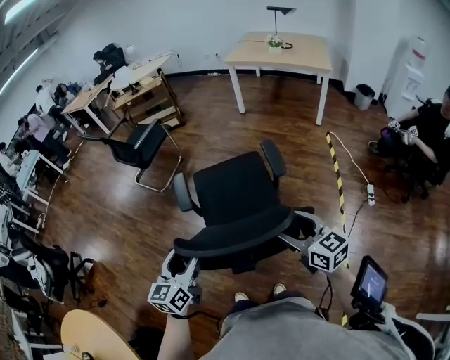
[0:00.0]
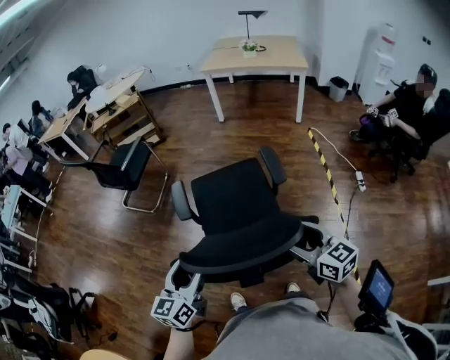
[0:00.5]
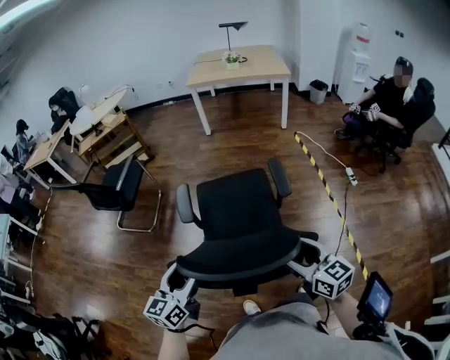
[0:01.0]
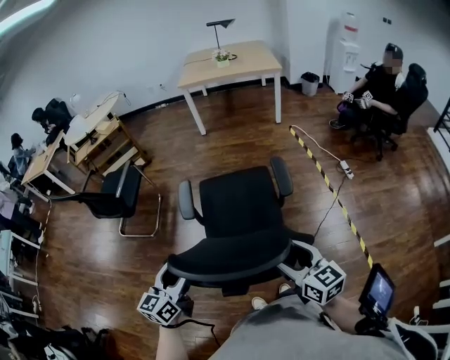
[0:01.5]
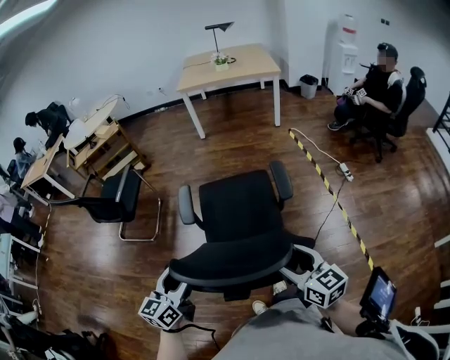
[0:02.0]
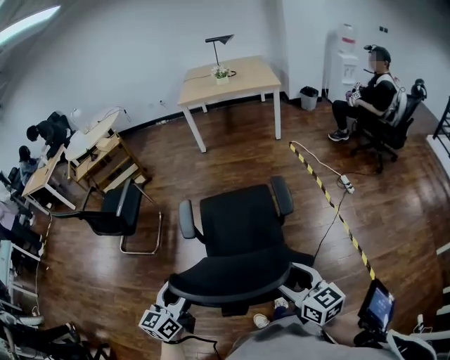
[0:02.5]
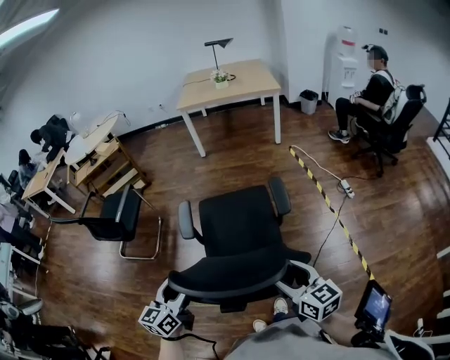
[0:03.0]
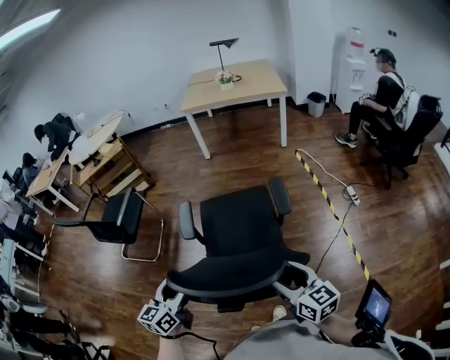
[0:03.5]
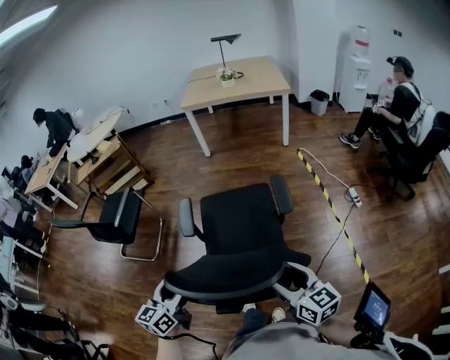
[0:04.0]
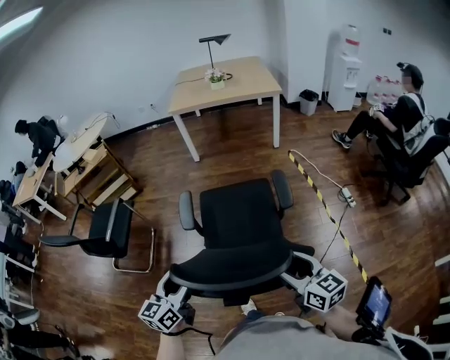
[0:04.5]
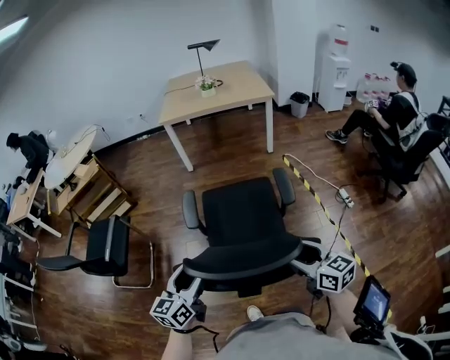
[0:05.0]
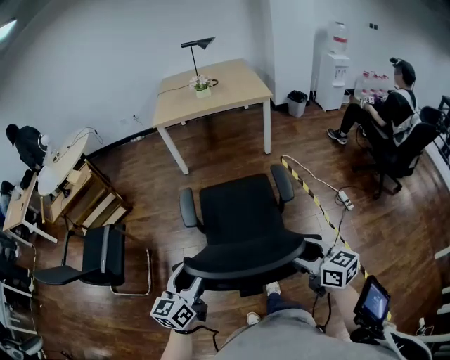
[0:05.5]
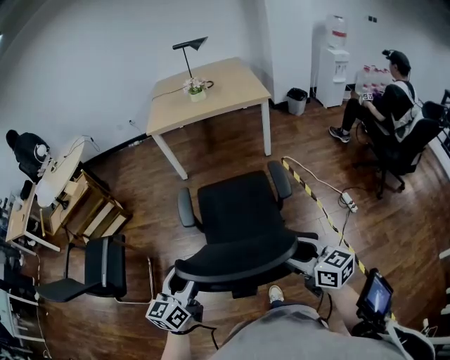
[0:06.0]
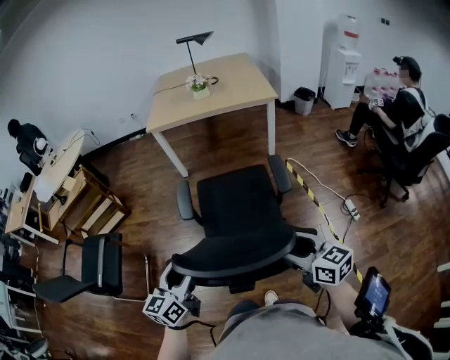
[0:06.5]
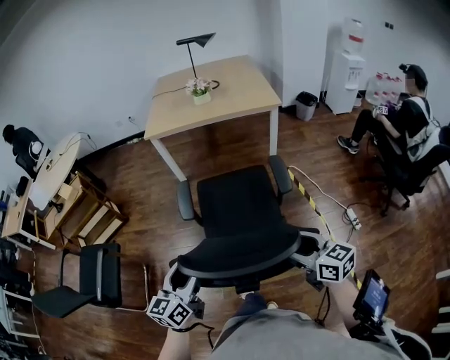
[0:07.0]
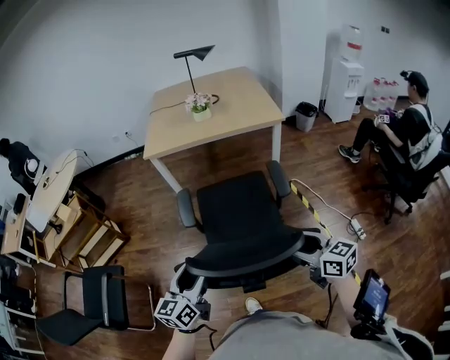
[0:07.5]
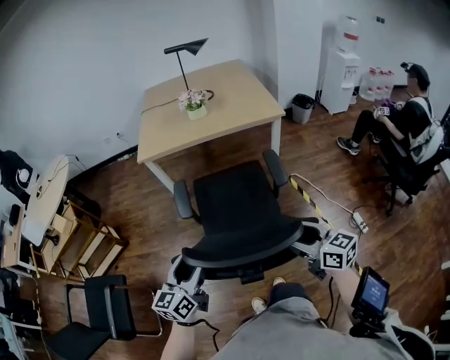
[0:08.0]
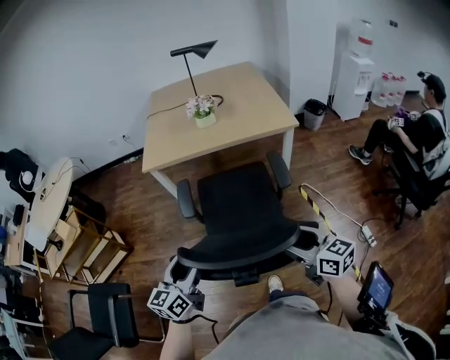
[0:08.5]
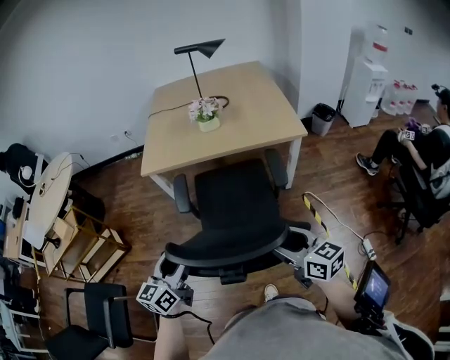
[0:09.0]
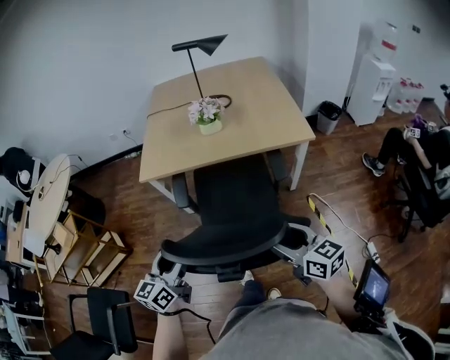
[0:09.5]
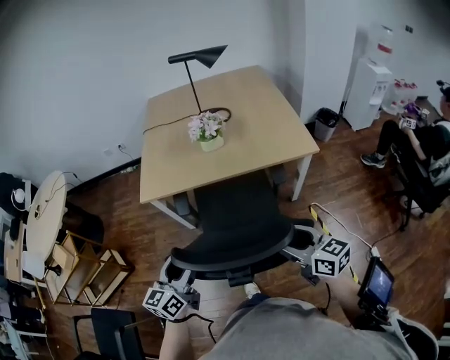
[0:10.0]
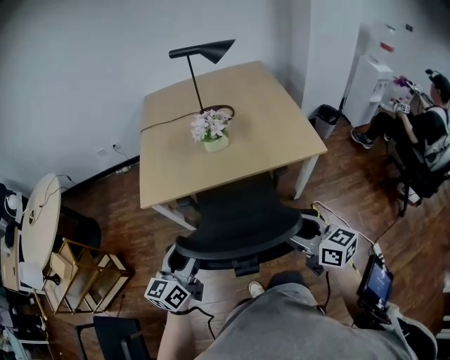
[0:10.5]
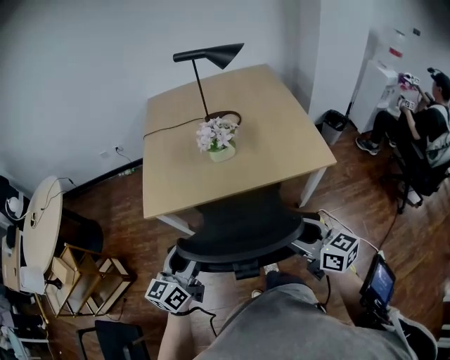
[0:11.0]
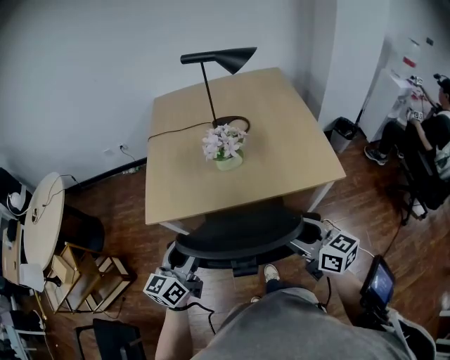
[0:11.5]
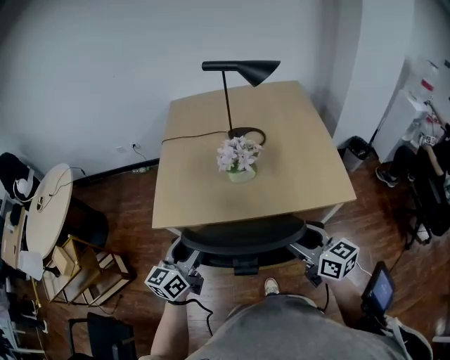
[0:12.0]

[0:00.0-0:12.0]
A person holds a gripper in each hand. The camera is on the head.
0:00.0 to 0:02.0: The right gripper changes place by approximately 20 cm, and swivels about 30 degrees, while the left gripper changes place by approximately 20 cm, and turns by about 30 degrees.
0:02.0 to 0:04.0: Both grippers travel together forward, approximately 15 cm.
0:04.0 to 0:06.0: Both grippers travel together forward, some 30 cm.
0:06.0 to 0:08.0: The grippers both shift forward by roughly 30 cm.
0:08.0 to 0:10.0: The grippers both shift forward by approximately 30 cm.
0:10.0 to 0:12.0: Both grippers travel together forward, roughly 25 cm.

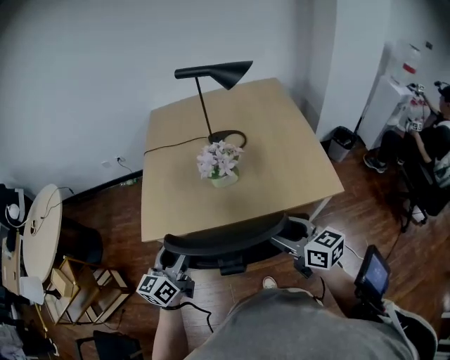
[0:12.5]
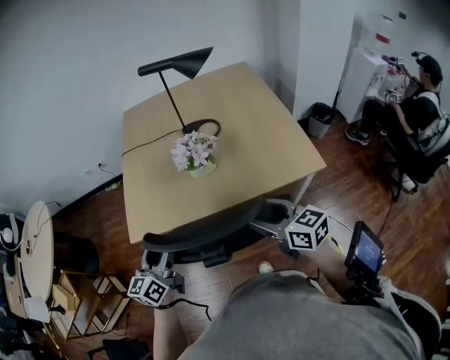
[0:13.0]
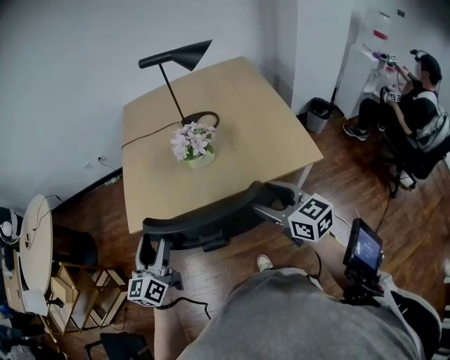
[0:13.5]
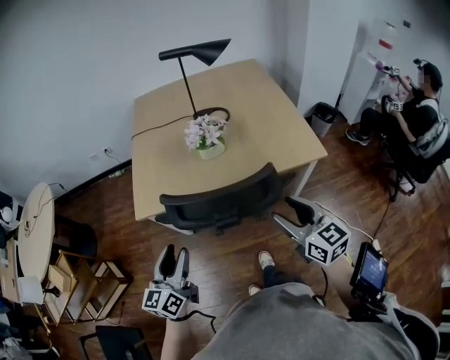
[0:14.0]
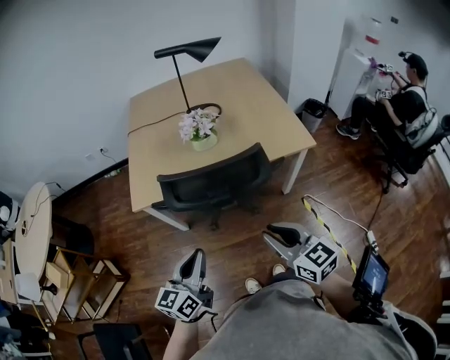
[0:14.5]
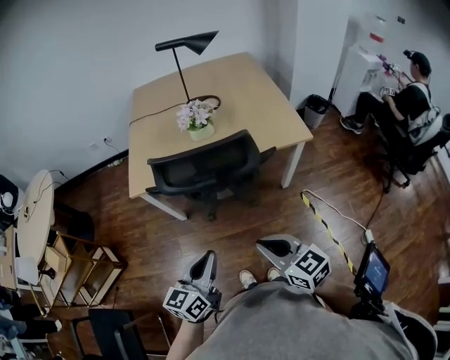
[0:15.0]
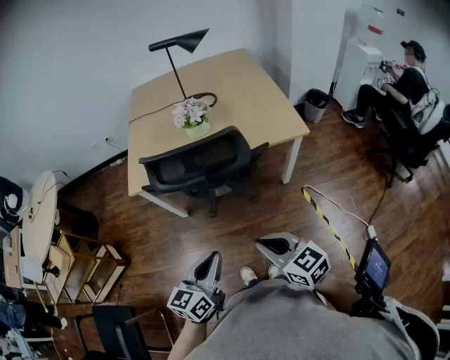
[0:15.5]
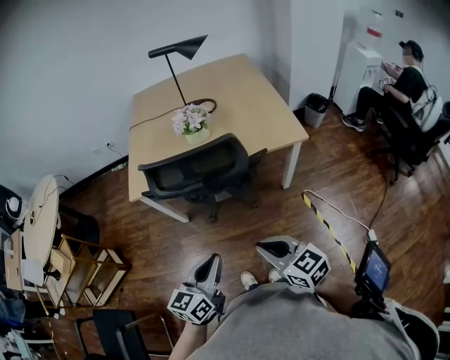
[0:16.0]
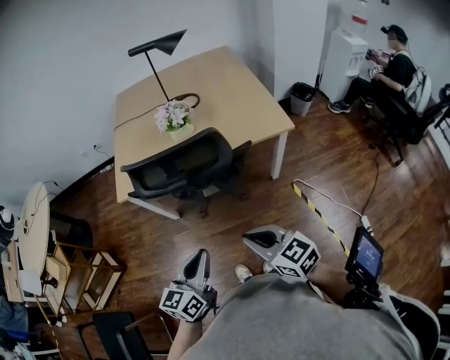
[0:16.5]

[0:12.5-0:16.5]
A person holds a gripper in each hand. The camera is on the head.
0:12.5 to 0:14.5: Both grippers travel together backward, some 20 cm. The right gripper closes its fingers. Meanwhile the left gripper closes its fingers.
0:14.5 to 0:16.5: The left gripper shifts approximately 10 cm to the right and backward; the right gripper is displaced backward by about 5 cm.

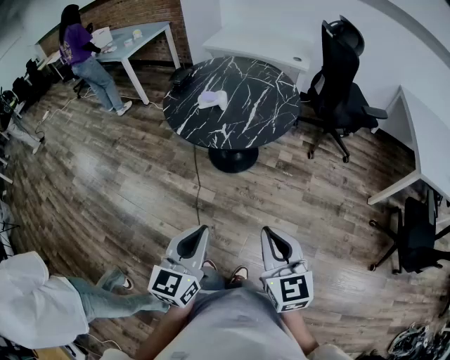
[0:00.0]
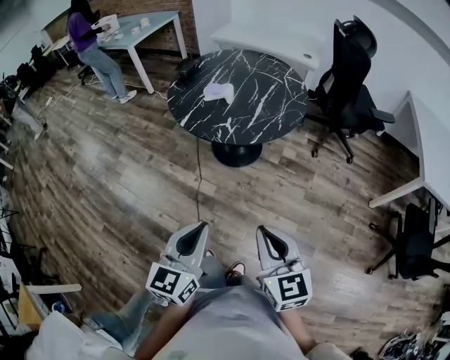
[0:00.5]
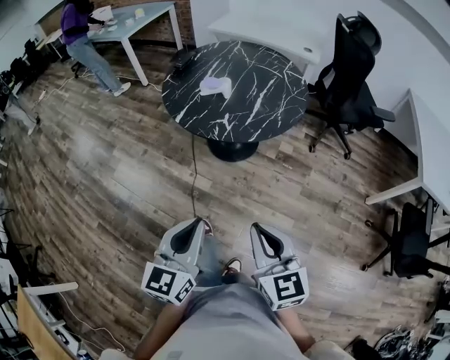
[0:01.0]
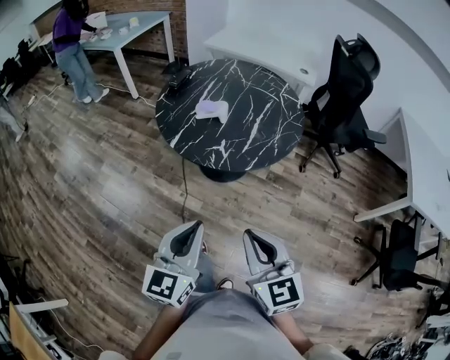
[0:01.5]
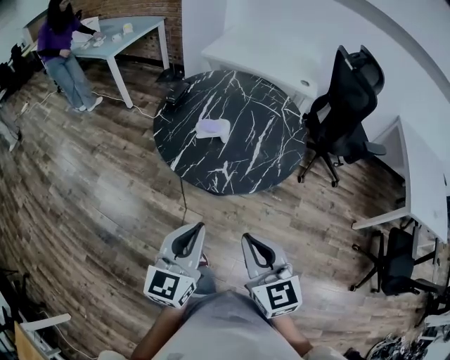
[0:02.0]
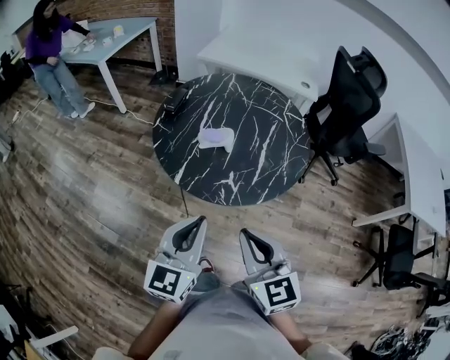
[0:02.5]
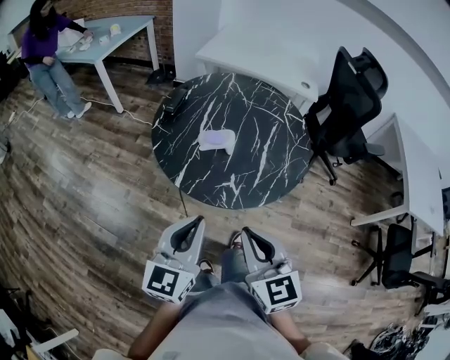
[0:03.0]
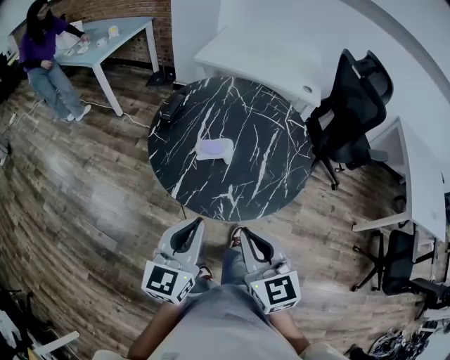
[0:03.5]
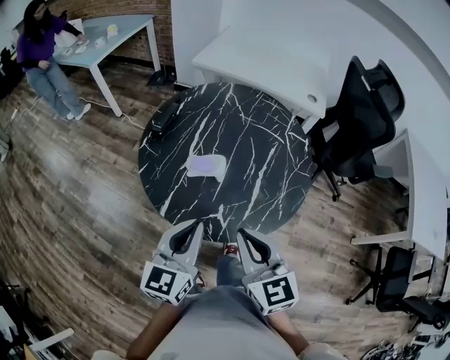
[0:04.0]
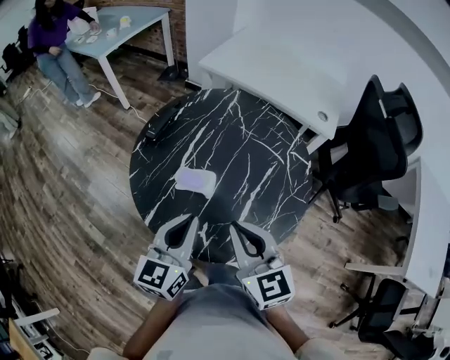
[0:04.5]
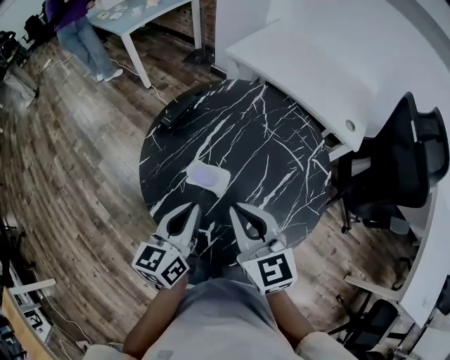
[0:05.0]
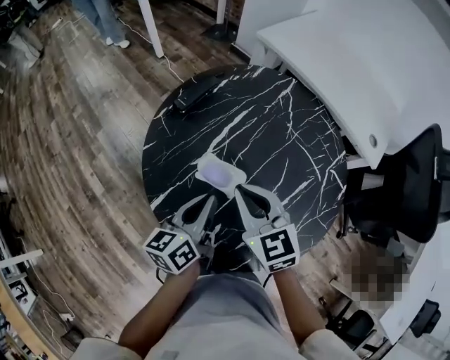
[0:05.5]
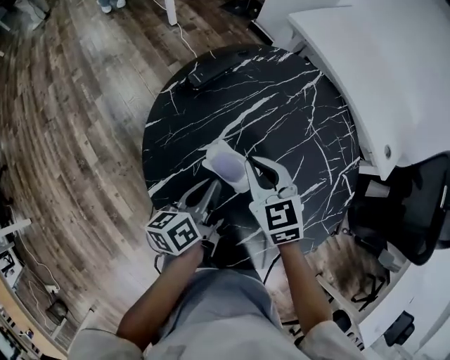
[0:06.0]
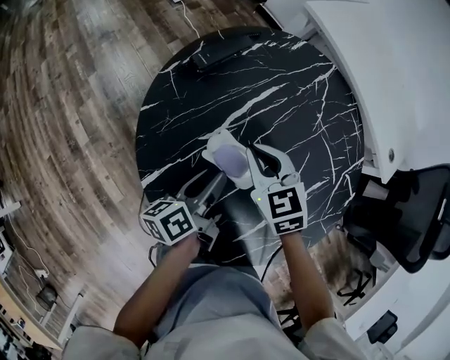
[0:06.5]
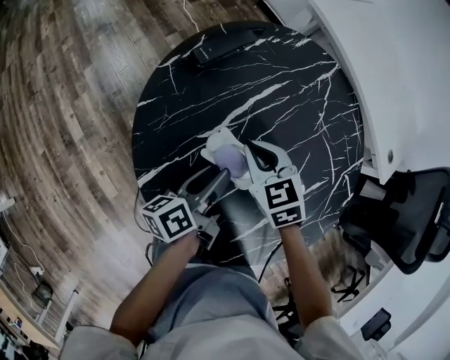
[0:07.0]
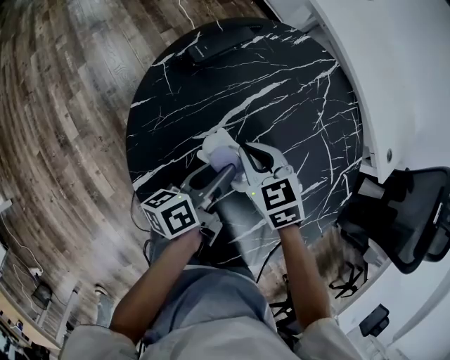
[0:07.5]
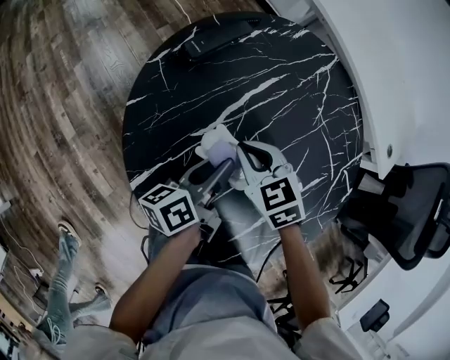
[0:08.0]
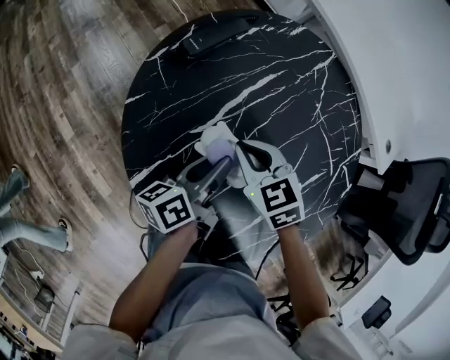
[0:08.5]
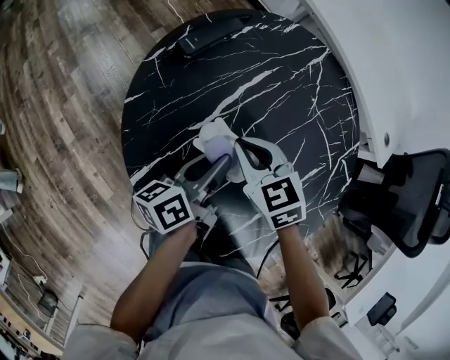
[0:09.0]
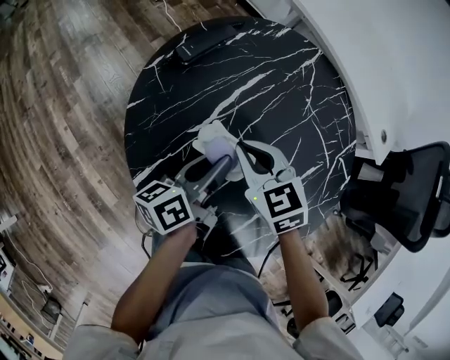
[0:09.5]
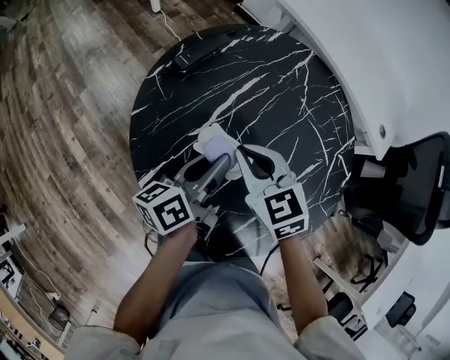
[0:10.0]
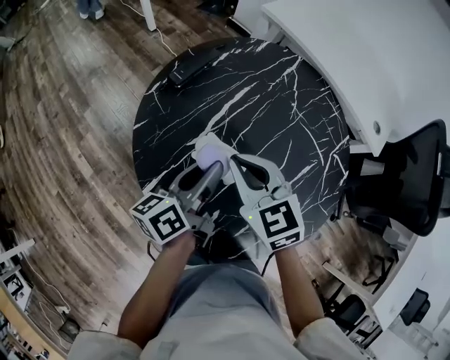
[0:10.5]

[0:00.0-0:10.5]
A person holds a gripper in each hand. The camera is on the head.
0:00.0 to 0:02.0: The left gripper heads forward, covering about 15 cm; the right gripper goes about 15 cm forward and to the left.
0:02.0 to 0:04.0: The two grippers go approximately 20 cm forward.
0:04.0 to 0:06.5: The right gripper moves some 35 cm, and rotates about 50 degrees; the left gripper heads downward, covering approximately 20 cm, twists about 60 degrees counterclockwise, seen from behind, and opens its fingers.
0:06.5 to 0:08.5: The grippers make only small movements.
0:08.5 to 0:10.5: The grippers both shift upward by roughly 10 cm.
